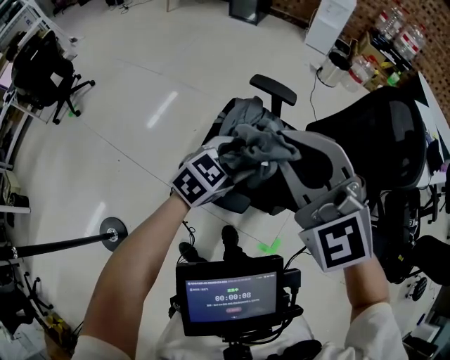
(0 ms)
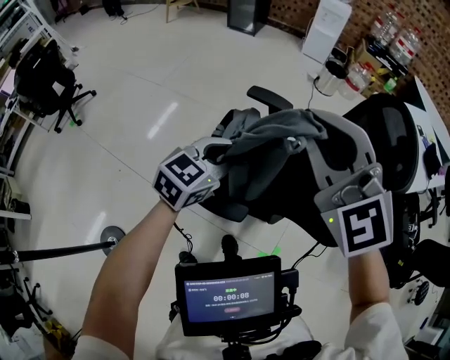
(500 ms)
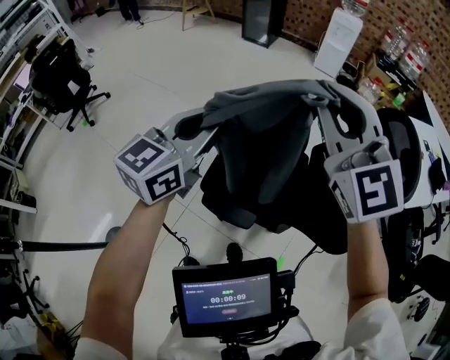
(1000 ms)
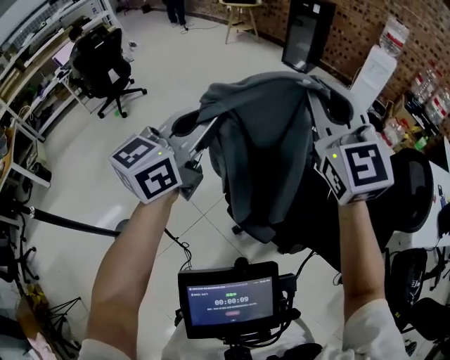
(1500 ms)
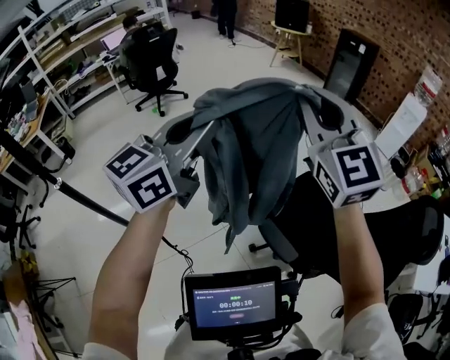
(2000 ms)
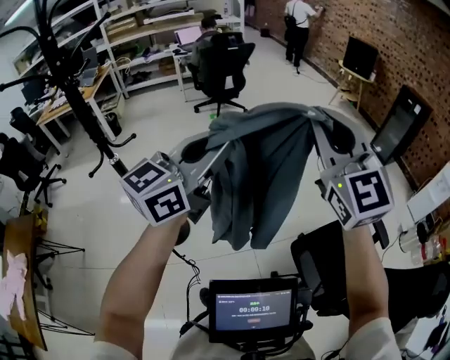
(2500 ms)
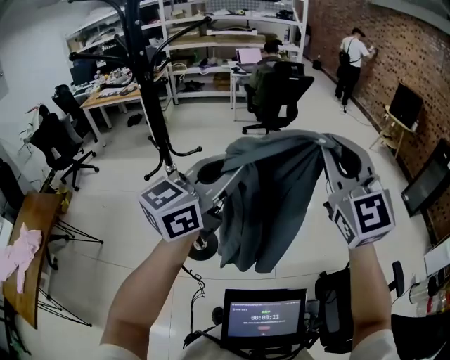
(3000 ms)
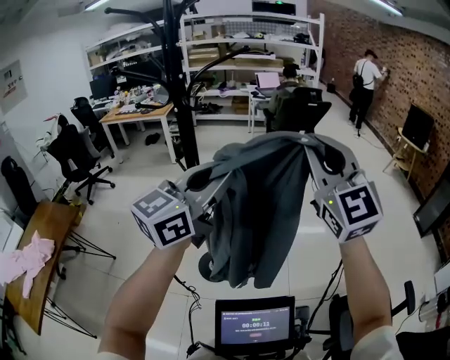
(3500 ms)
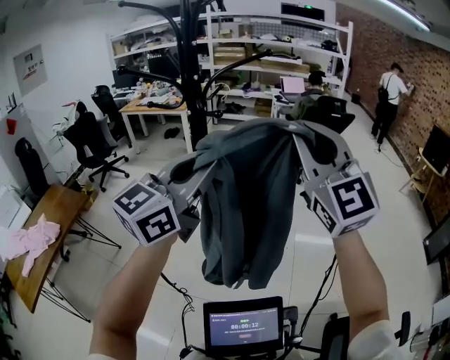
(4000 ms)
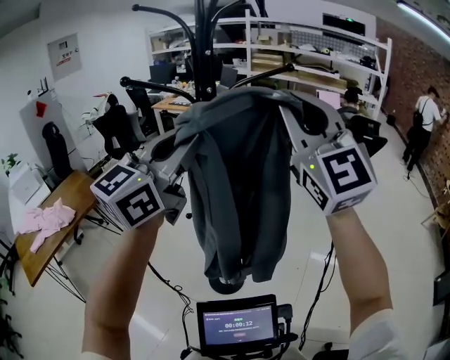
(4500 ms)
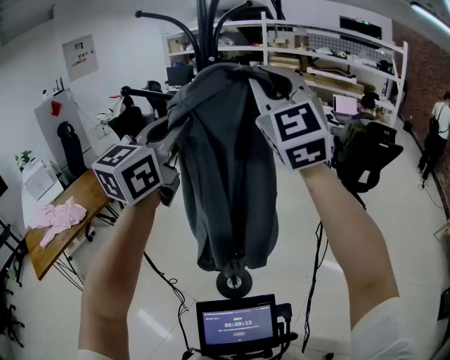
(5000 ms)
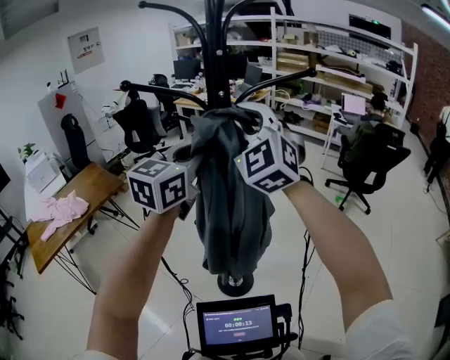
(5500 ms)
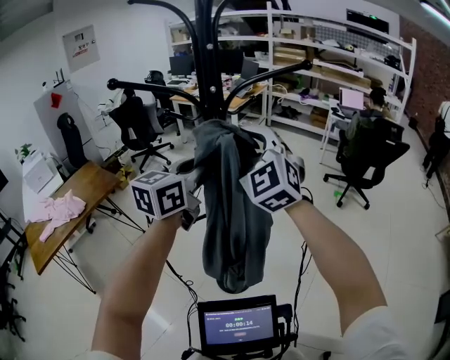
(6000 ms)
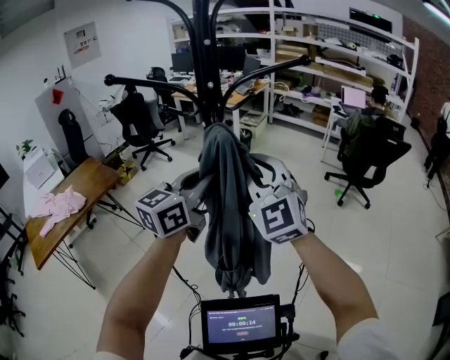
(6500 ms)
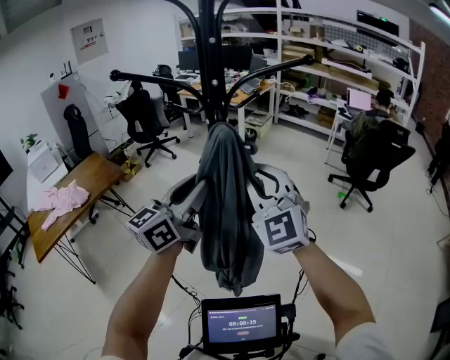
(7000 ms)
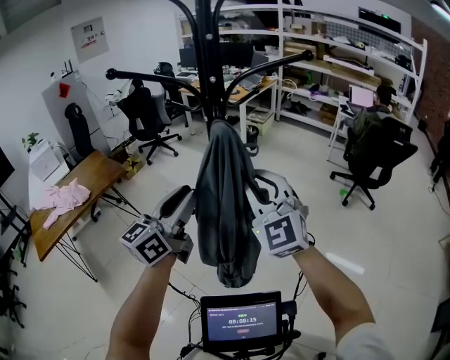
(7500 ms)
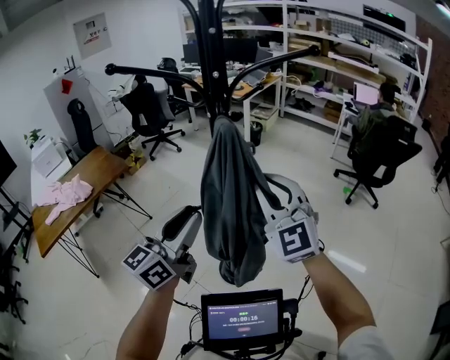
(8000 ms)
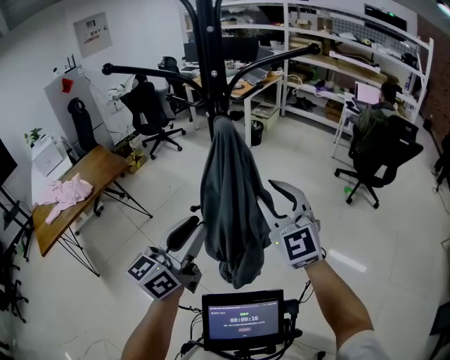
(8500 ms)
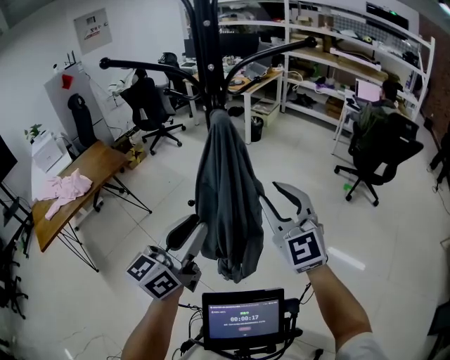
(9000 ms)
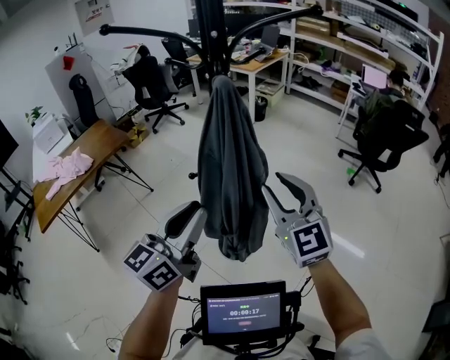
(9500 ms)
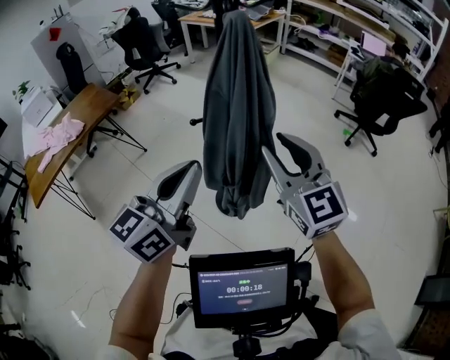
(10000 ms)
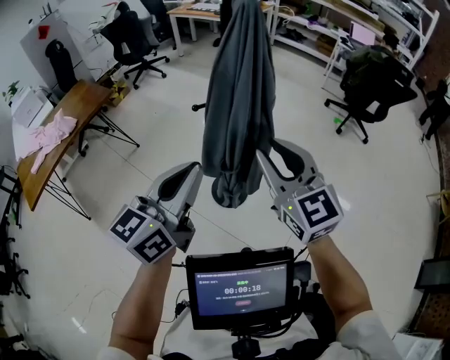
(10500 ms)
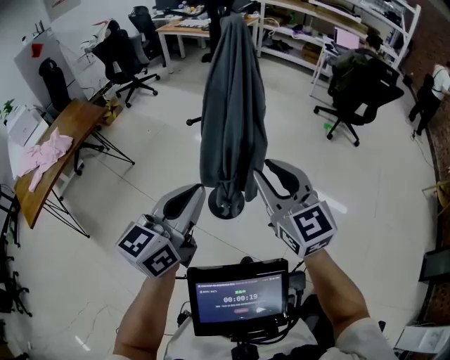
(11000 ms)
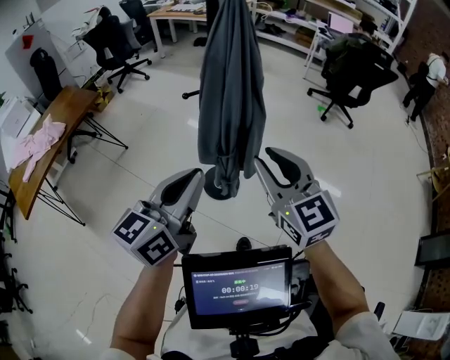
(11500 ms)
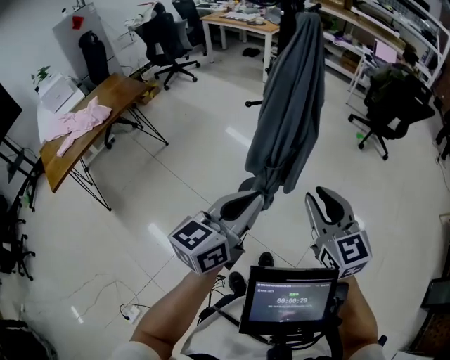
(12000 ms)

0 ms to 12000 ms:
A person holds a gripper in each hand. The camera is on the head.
0 ms to 2000 ms: The right gripper ends up some 25 cm from where it was, and swivels roughly 30 degrees, while the left gripper moves some 50 cm, points its fingers roughly 40 degrees further upward, and closes up.
2000 ms to 4000 ms: Both grippers are carried some 50 cm. The right gripper rotates roughly 50 degrees; the left gripper swivels approximately 50 degrees.
4000 ms to 6000 ms: The right gripper goes about 25 cm forward and to the left, and rotates some 20 degrees. The left gripper shifts about 15 cm forward, and changes its angle by about 30 degrees.
6000 ms to 8000 ms: The left gripper travels backward and downward by roughly 15 cm. The right gripper heads downward and backward, covering approximately 10 cm.
8000 ms to 10000 ms: The left gripper is displaced backward by roughly 10 cm, and closes, while the right gripper is displaced backward and downward by approximately 10 cm, and turns by some 20 degrees.
10000 ms to 12000 ms: The two grippers go about 15 cm backward and downward.

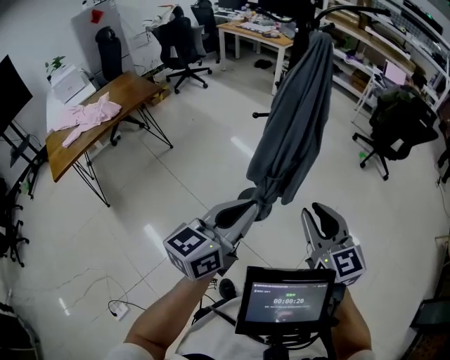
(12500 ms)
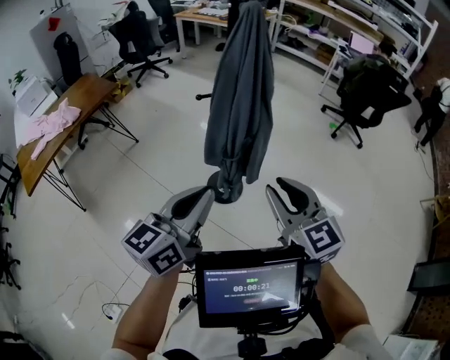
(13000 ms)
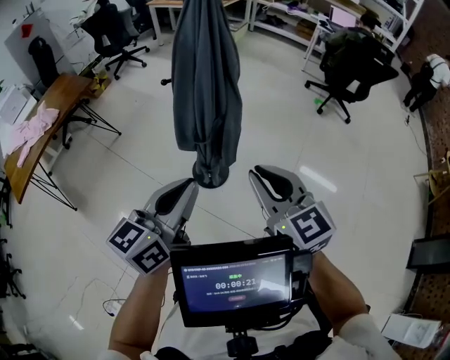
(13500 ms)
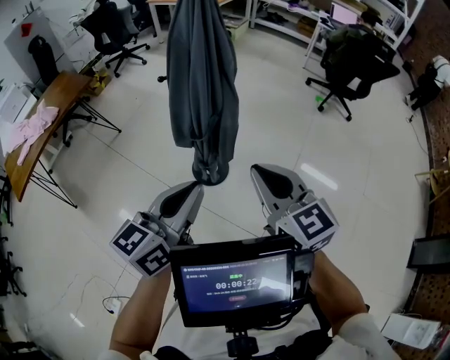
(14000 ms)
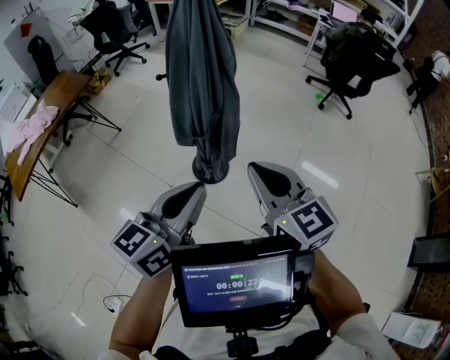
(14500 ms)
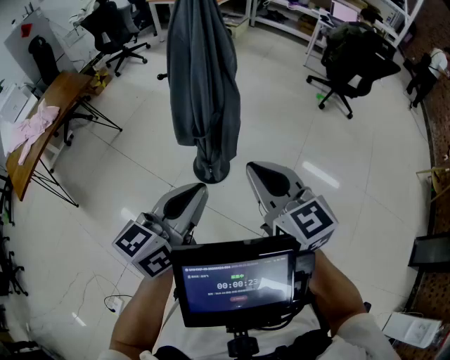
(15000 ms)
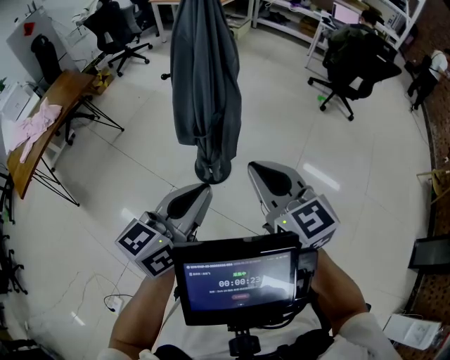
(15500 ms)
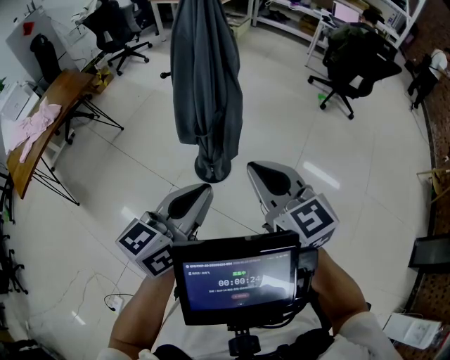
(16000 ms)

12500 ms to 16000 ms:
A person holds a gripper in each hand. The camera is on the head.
12500 ms to 14500 ms: The right gripper heads to the right, covering roughly 5 cm, while the left gripper moves to the right, about 10 cm.
14500 ms to 16000 ms: Neither gripper changes place.

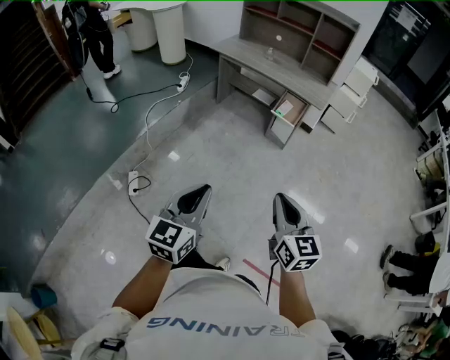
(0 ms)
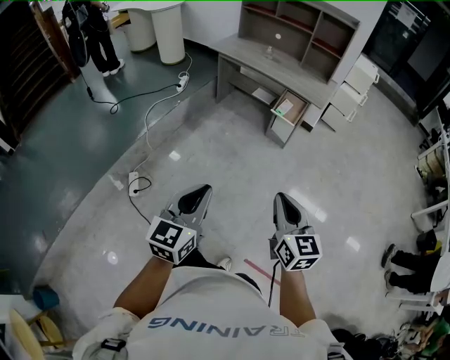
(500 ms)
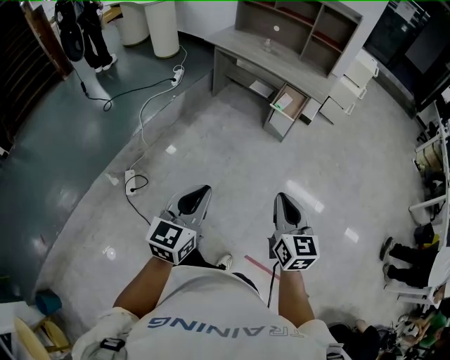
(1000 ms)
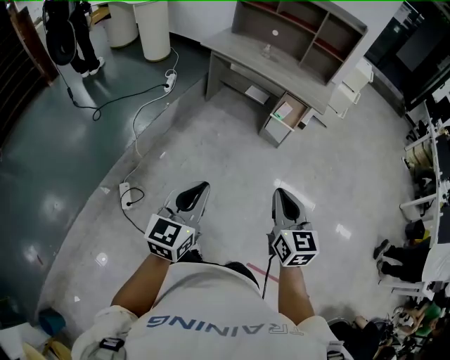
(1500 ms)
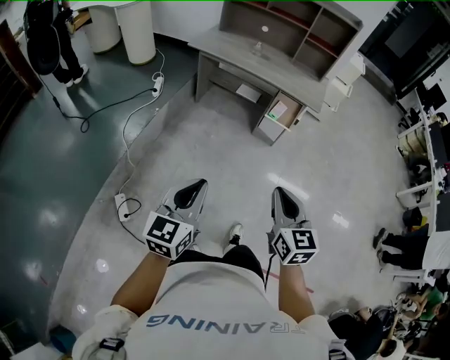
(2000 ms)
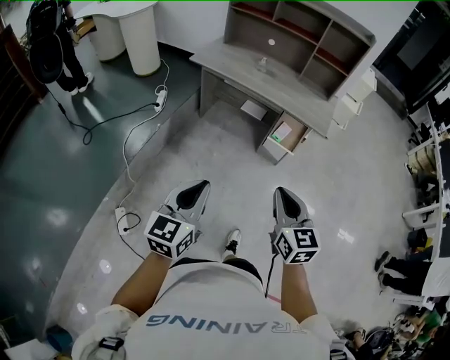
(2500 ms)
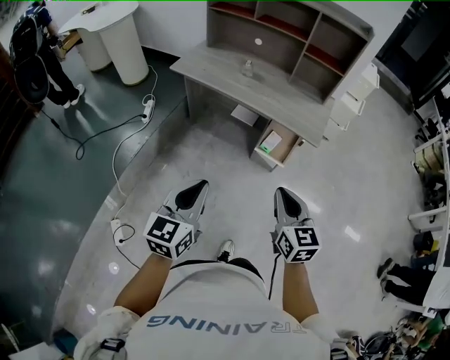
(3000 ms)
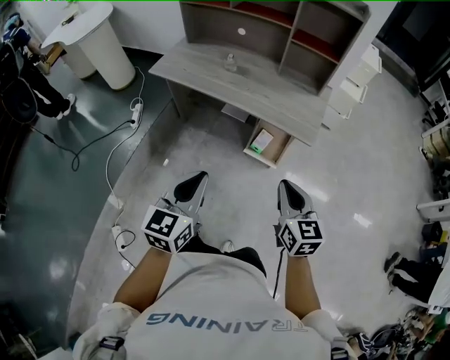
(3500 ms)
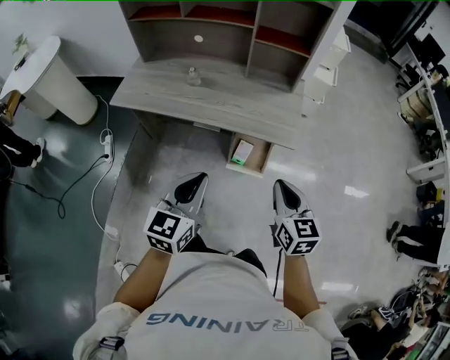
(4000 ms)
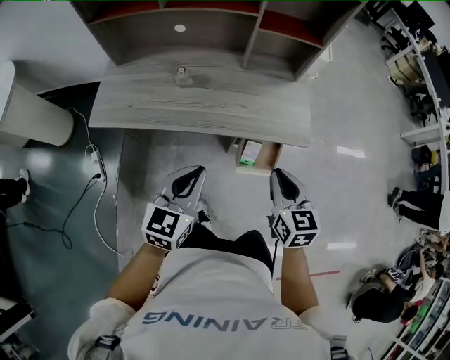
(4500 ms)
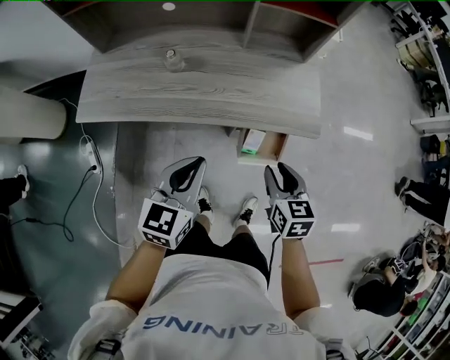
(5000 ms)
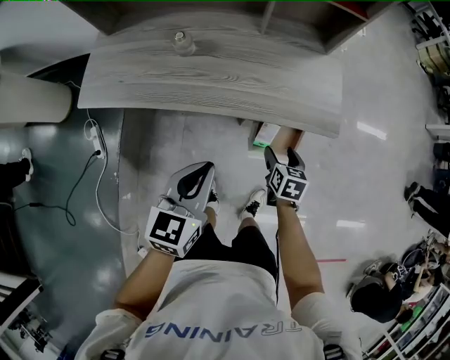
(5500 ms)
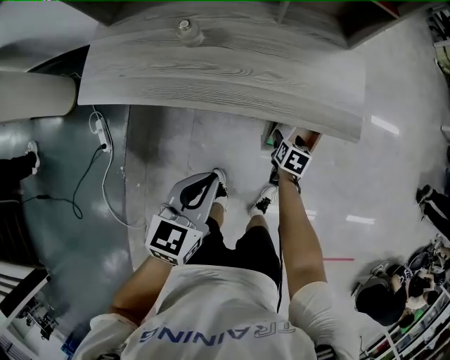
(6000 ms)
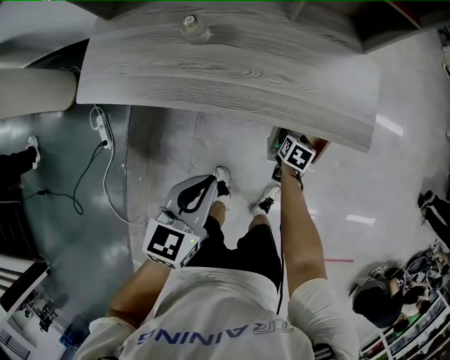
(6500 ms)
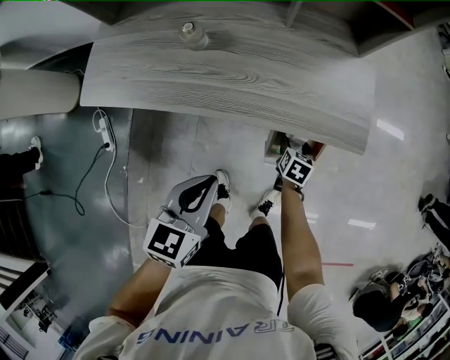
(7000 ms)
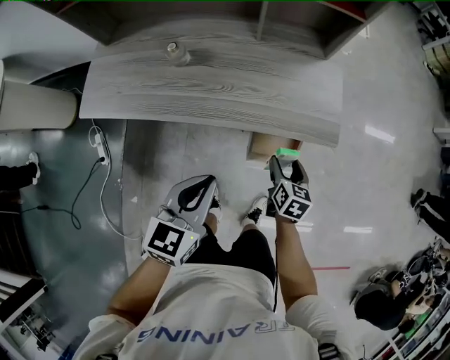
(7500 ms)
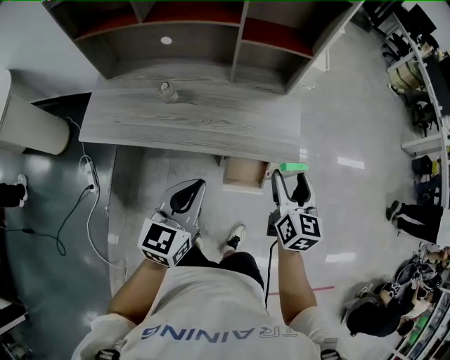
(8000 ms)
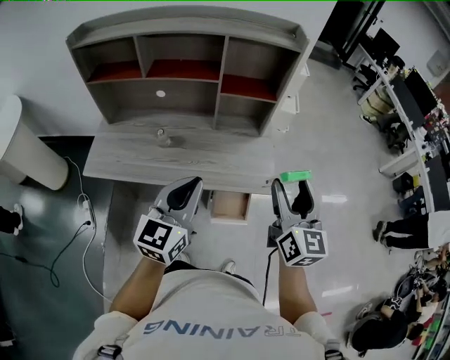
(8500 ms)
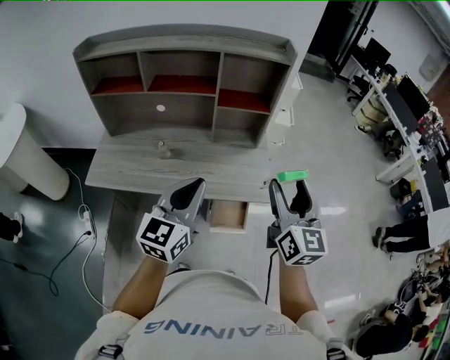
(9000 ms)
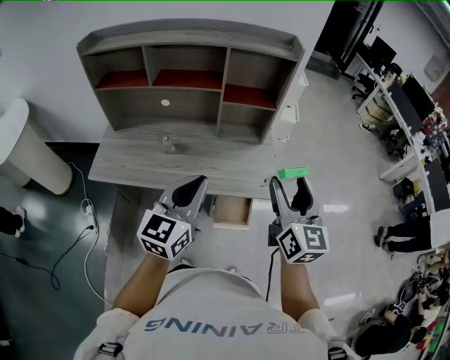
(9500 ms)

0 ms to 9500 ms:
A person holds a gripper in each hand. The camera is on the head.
0 ms to 2000 ms: The grippers both shift forward and to the left by approximately 25 cm.
2000 ms to 4000 ms: The two grippers travel together, forward, roughly 50 cm.
4000 ms to 5500 ms: The right gripper heads downward and forward, covering about 35 cm, swivels approximately 40 degrees, and opens. The left gripper travels forward, downward and to the left by about 20 cm.
5500 ms to 7500 ms: The right gripper travels downward and back again, some 15 cm each way.
7500 ms to 9500 ms: The right gripper shifts approximately 50 cm upward, and tips its fingers upward by roughly 50 degrees; the left gripper heads upward, covering about 25 cm, and swivels roughly 30 degrees.

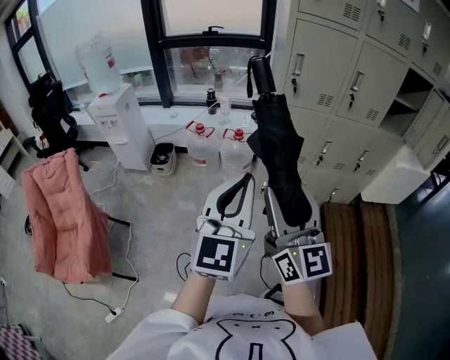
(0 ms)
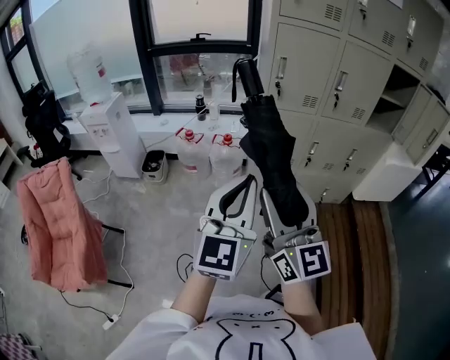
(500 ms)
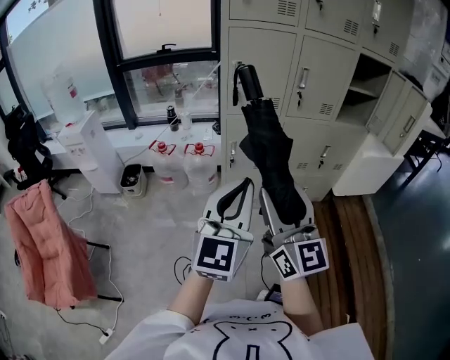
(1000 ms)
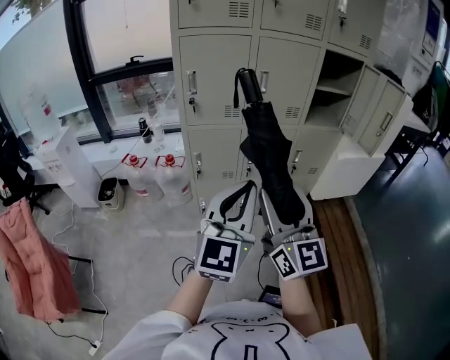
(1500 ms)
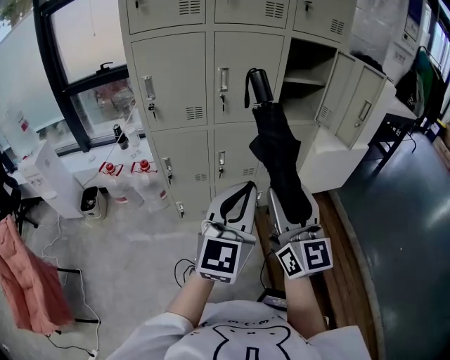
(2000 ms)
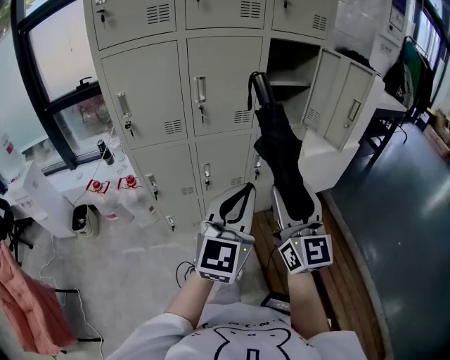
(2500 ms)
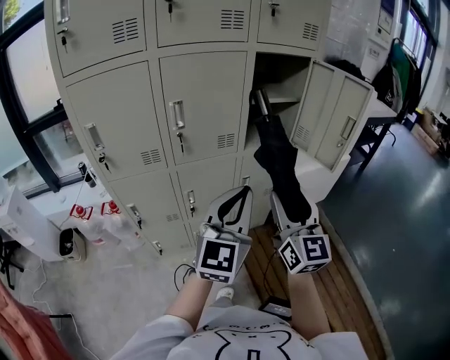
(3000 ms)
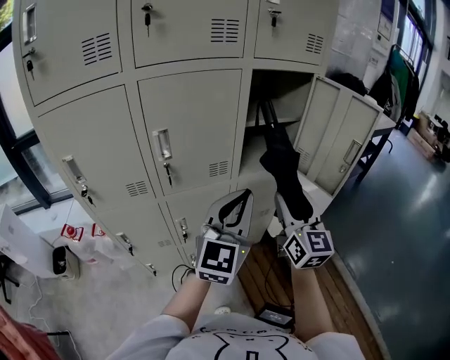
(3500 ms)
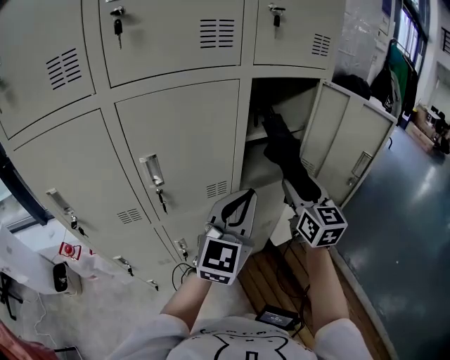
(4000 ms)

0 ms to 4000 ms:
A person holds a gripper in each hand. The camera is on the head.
0 ms to 2000 ms: Both grippers are carried to the right, about 40 cm.
2000 ms to 4000 ms: The grippers both shift forward by some 40 cm. The right gripper rotates approximately 20 degrees.
